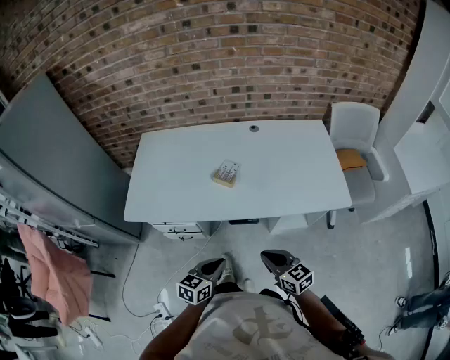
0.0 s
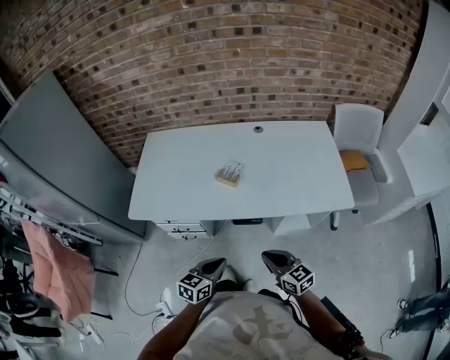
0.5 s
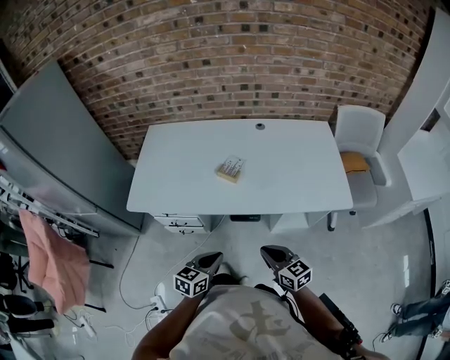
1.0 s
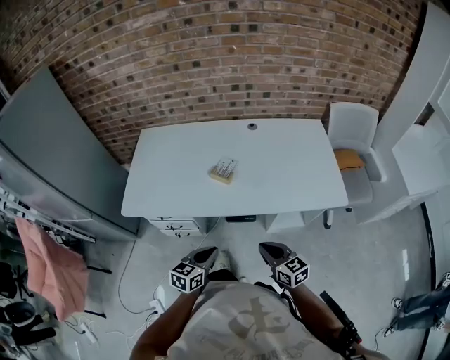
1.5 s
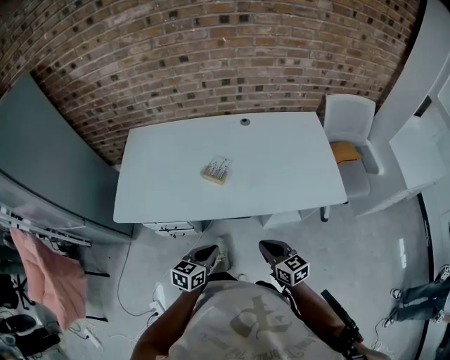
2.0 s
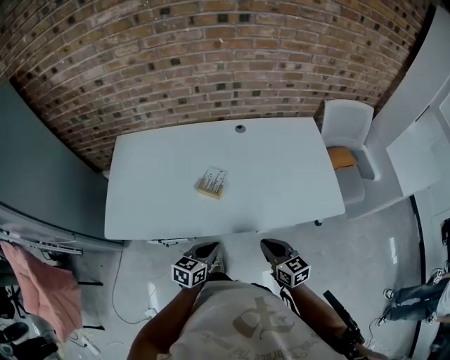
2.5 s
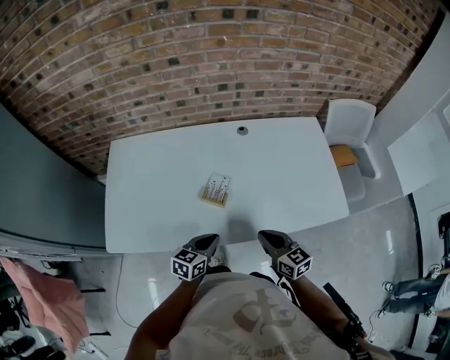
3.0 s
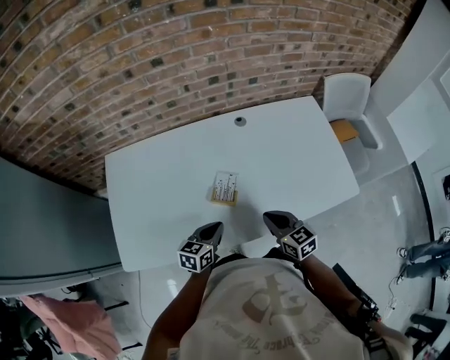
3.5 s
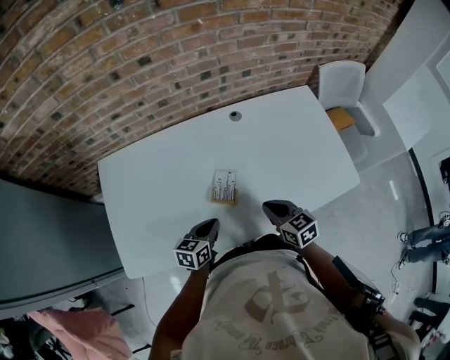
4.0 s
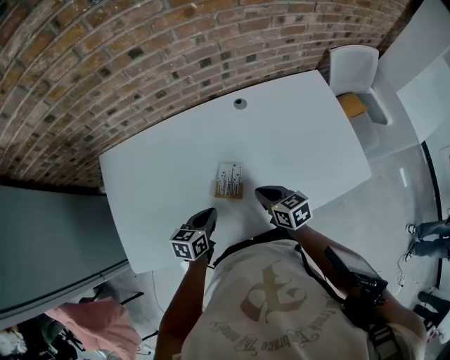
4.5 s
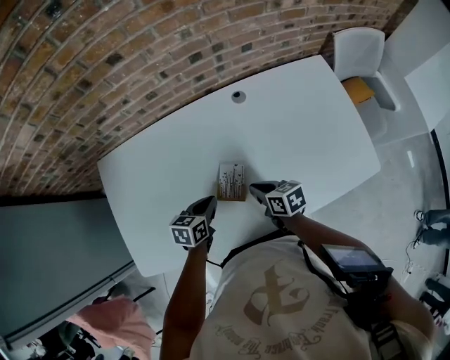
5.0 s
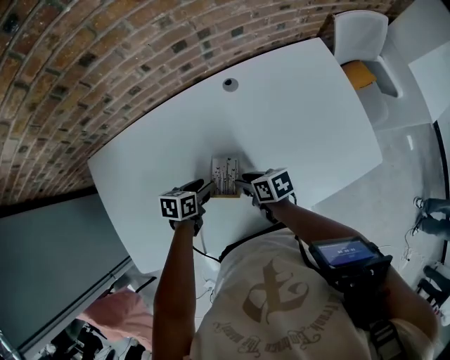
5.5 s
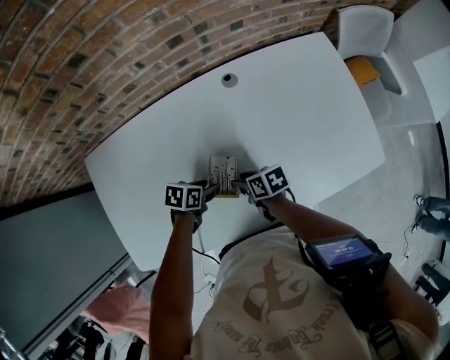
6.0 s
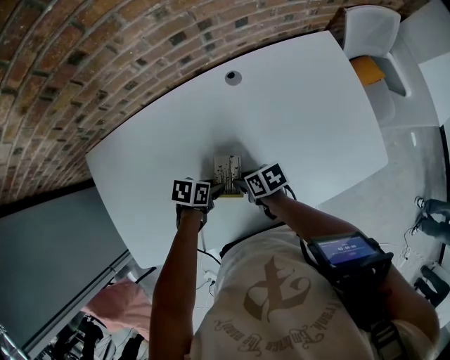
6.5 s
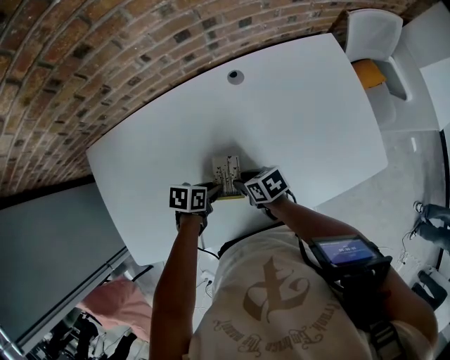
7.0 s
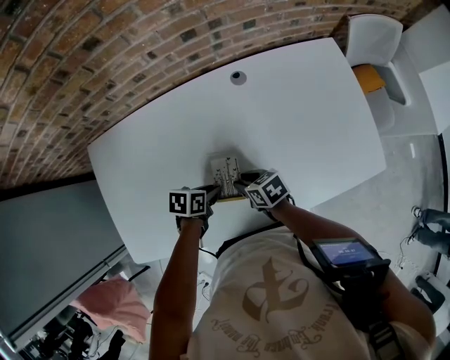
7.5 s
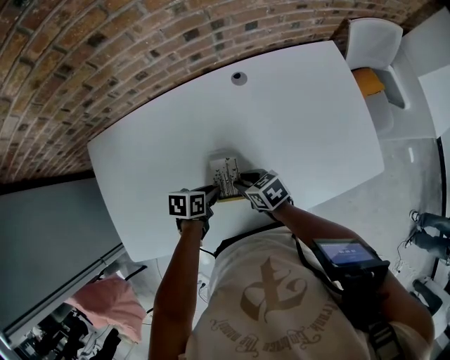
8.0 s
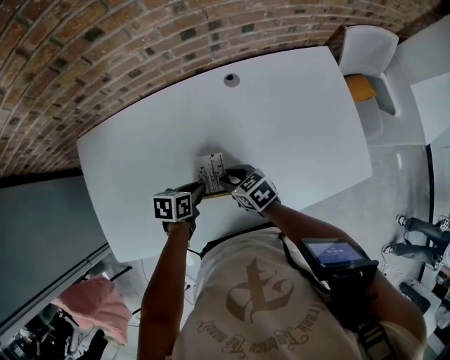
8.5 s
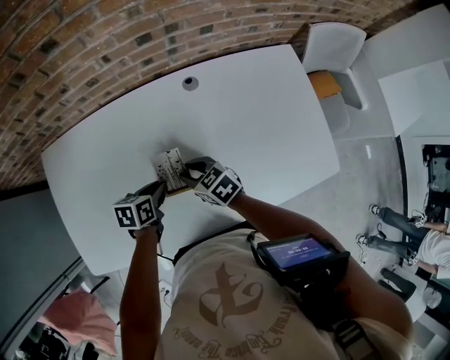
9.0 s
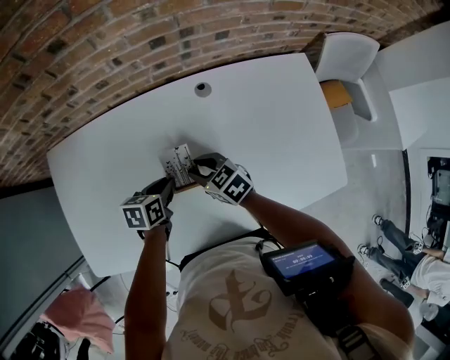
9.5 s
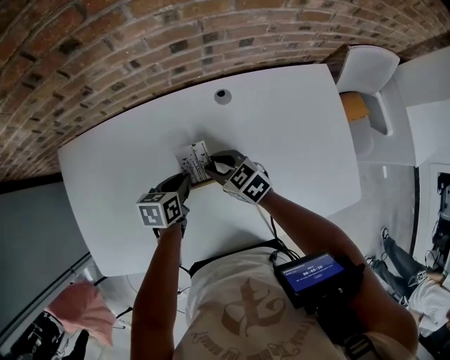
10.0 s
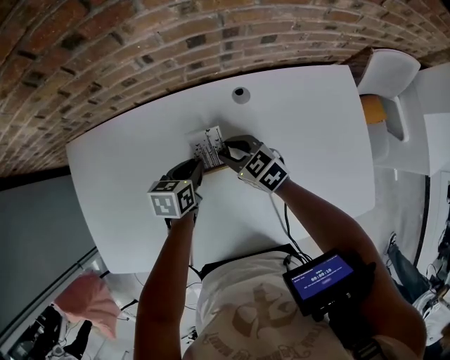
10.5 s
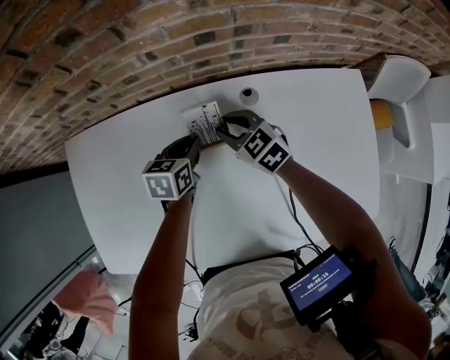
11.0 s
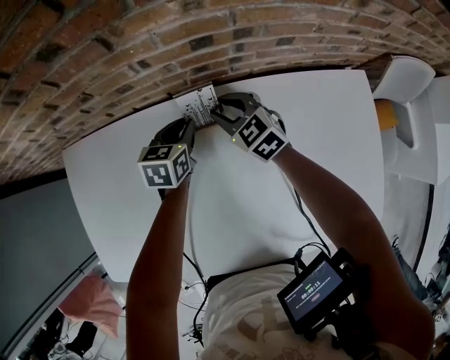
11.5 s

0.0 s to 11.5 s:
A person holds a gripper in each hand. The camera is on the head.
0.0 to 2.0 s: The left gripper heads forward, covering approximately 5 cm; the right gripper changes place by roughly 5 cm.
2.0 to 4.0 s: The left gripper is displaced forward and to the left by roughly 25 cm; the right gripper is displaced forward by some 25 cm.
4.0 to 6.0 s: The left gripper changes place by some 15 cm, swivels about 40 degrees, and opens its fingers. The right gripper shifts about 15 cm downward, turns by approximately 40 degrees, and opens.
6.0 to 7.5 s: The left gripper closes its fingers.
7.5 to 9.5 s: The right gripper shifts by some 10 cm, and rotates about 30 degrees. The left gripper changes place by approximately 10 cm.
9.5 to 11.5 s: The grippers both shift forward by about 25 cm. The right gripper rotates roughly 20 degrees; the left gripper turns by roughly 20 degrees.

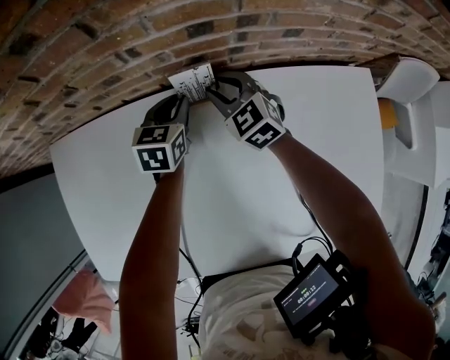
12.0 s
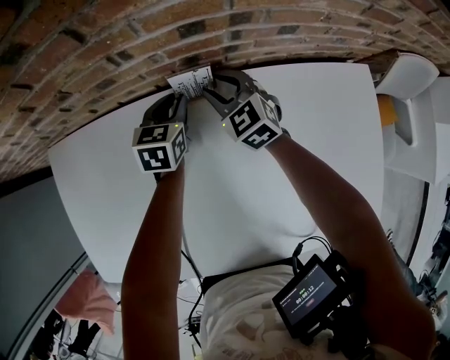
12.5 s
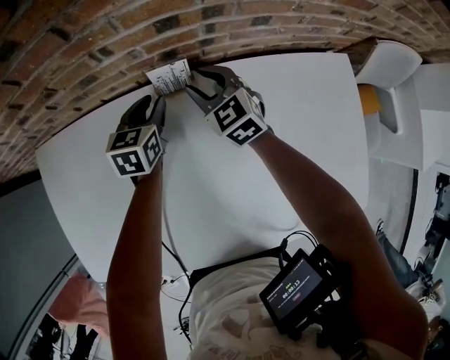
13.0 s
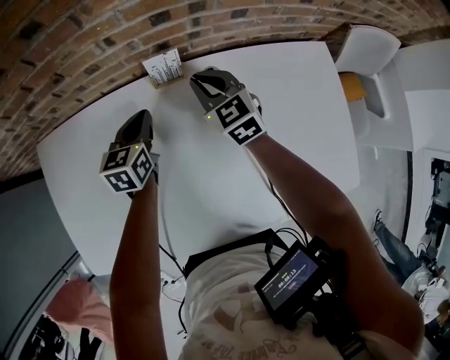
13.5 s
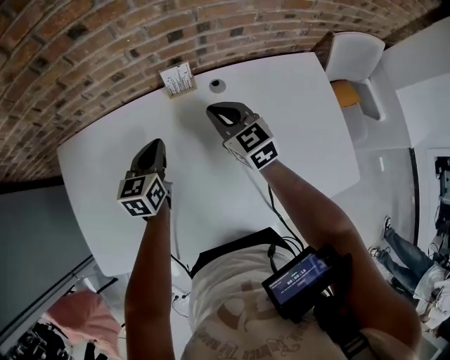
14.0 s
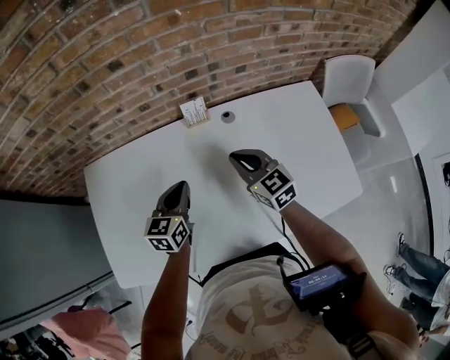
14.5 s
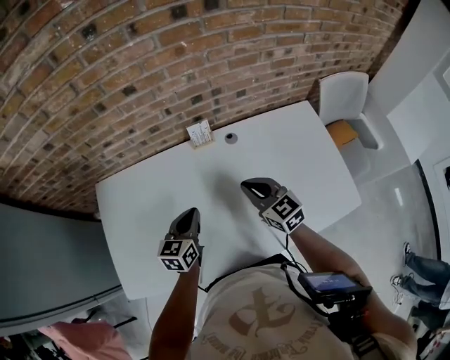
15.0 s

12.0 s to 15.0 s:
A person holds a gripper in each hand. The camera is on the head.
12.0 to 13.5 s: The grippers both shift backward and upward by about 10 cm. The right gripper closes.
13.5 to 15.0 s: The two grippers go approximately 25 cm backward and upward.

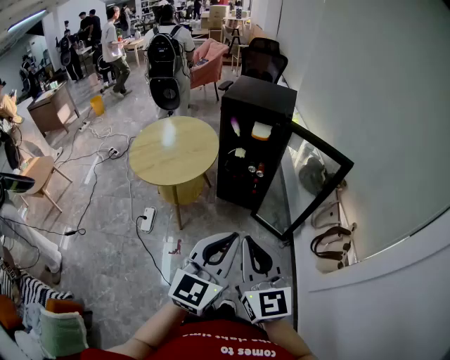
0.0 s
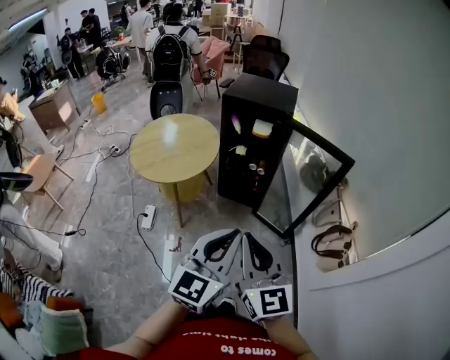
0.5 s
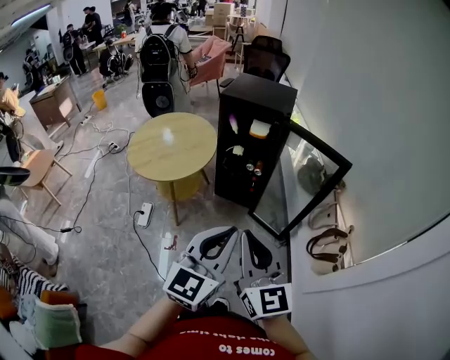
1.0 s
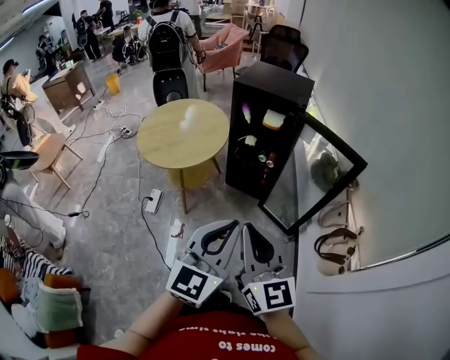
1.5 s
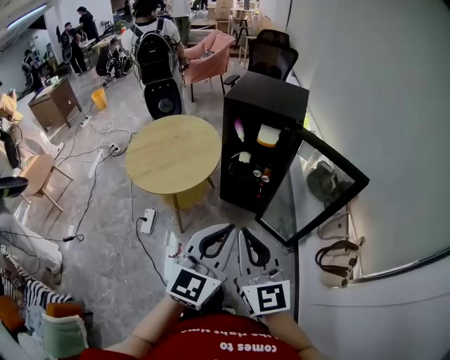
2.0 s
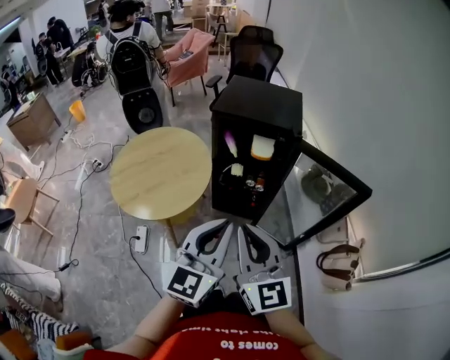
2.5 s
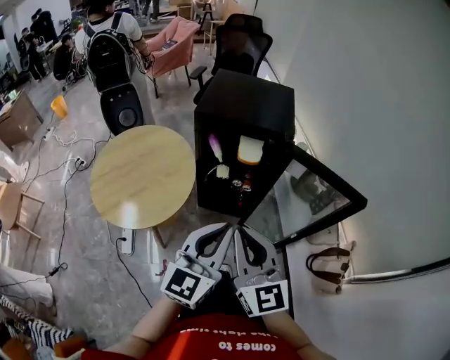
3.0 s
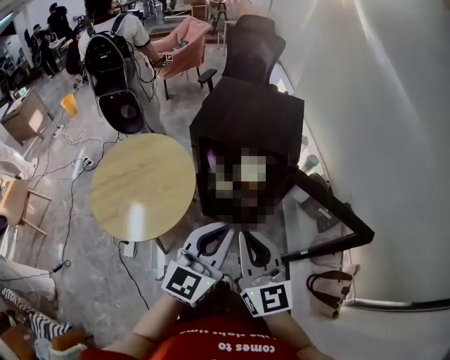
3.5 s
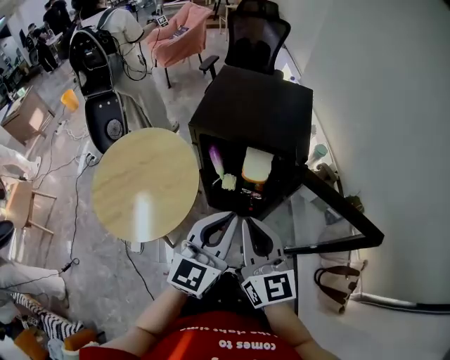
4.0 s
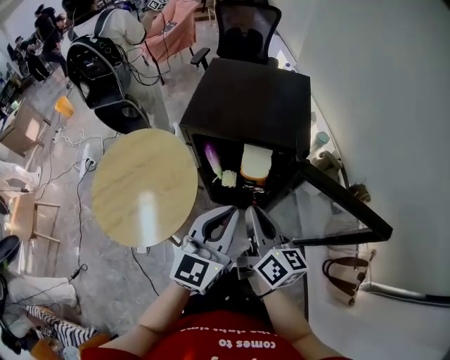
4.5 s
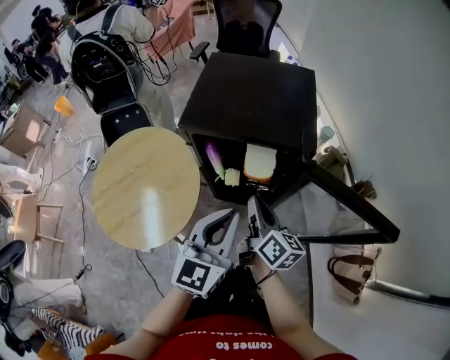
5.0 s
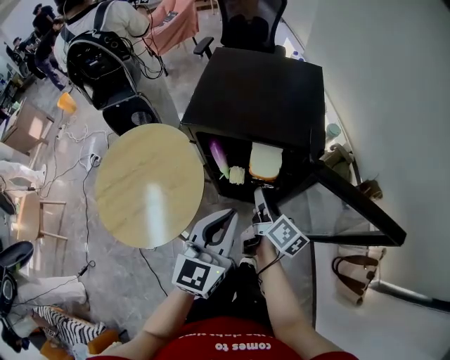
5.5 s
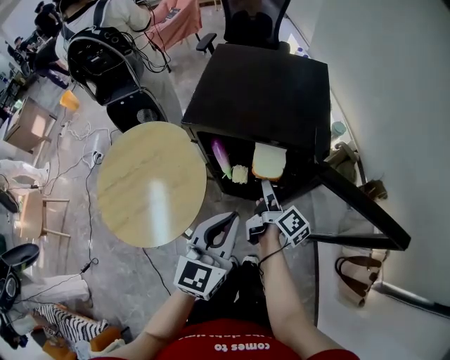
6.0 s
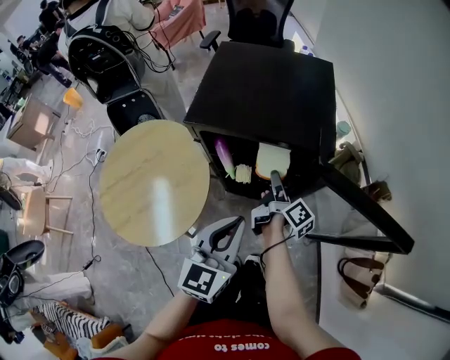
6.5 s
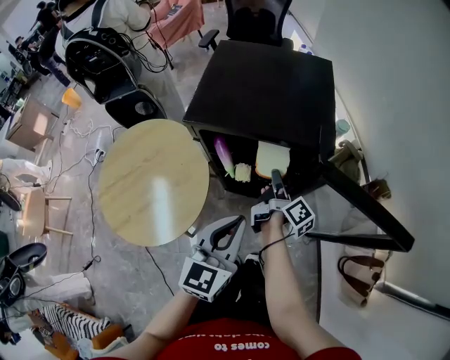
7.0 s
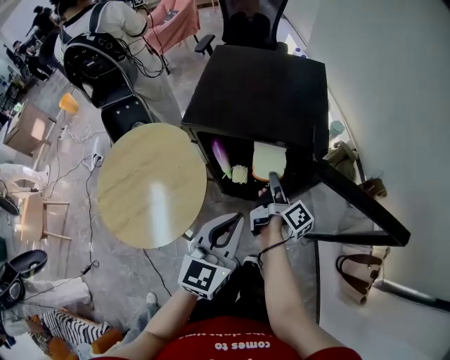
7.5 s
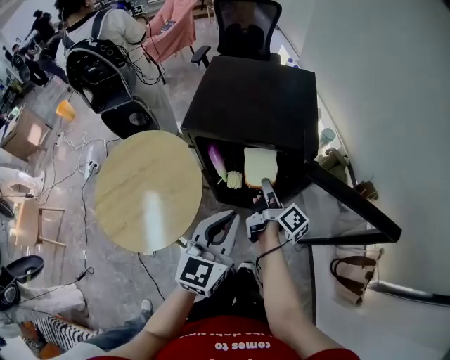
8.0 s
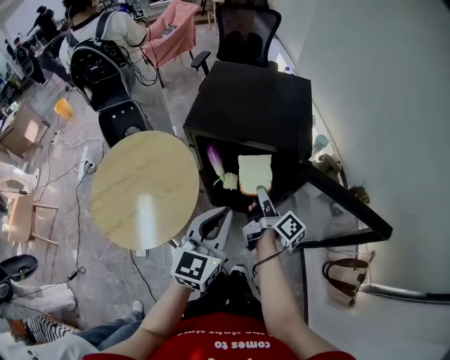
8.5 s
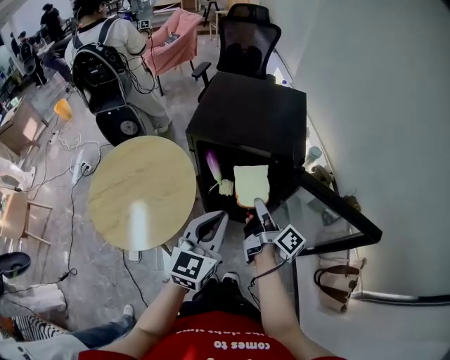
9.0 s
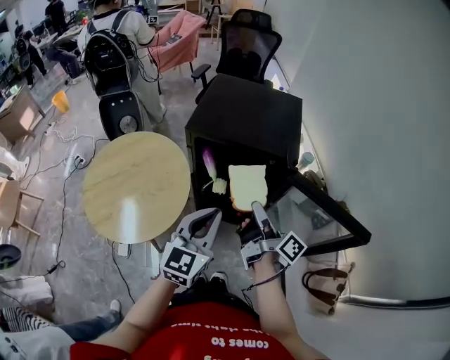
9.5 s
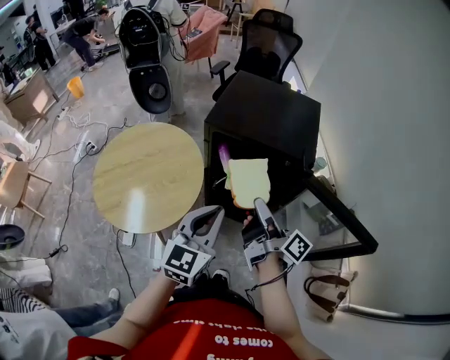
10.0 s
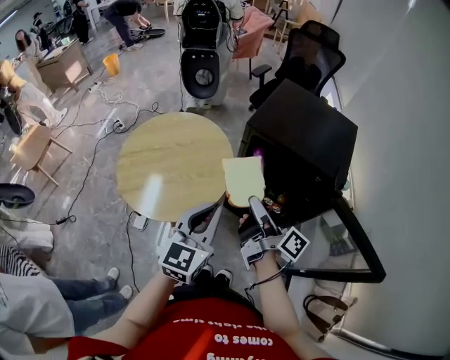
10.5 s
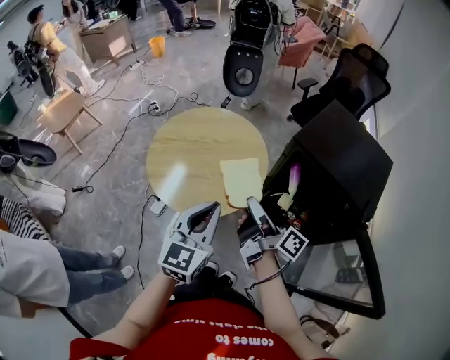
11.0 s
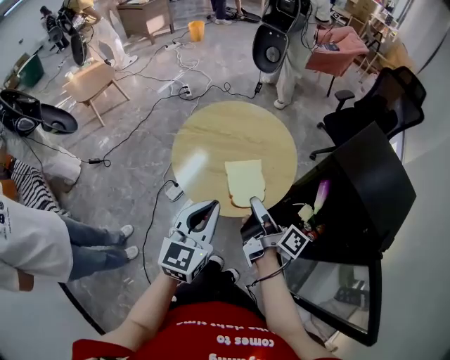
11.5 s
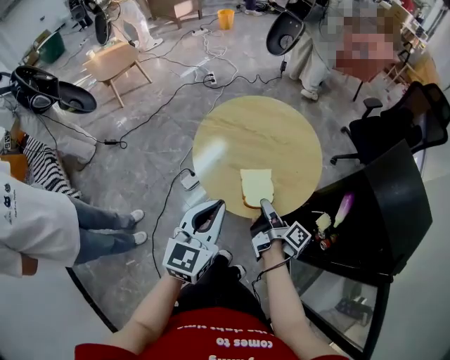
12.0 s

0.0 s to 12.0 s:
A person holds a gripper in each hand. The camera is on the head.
0.0 to 2.0 s: Both grippers travel together forward, some 15 cm.
2.0 to 4.0 s: The two grippers go about 35 cm forward.
4.0 to 6.0 s: The left gripper heads downward, covering roughly 10 cm. Meanwhile the right gripper shifts about 30 cm downward and forward, twists some 70 degrees clockwise, seen from behind, and opens its fingers.
6.0 to 8.0 s: The right gripper closes.
8.0 to 10.0 s: The left gripper moves roughly 5 cm. The right gripper shifts some 15 cm upward and backward, and changes its angle by approximately 20 degrees.
10.0 to 12.0 s: The left gripper changes place by some 30 cm, and swivels about 50 degrees. The right gripper moves approximately 35 cm, and rotates approximately 50 degrees.
